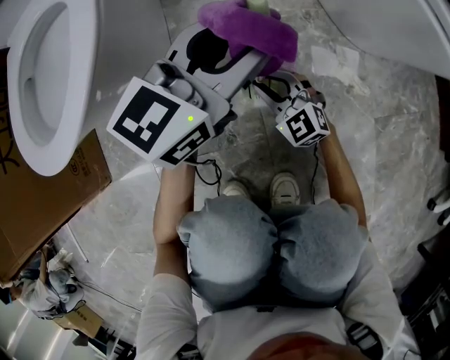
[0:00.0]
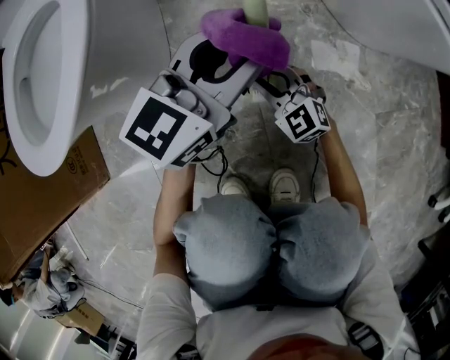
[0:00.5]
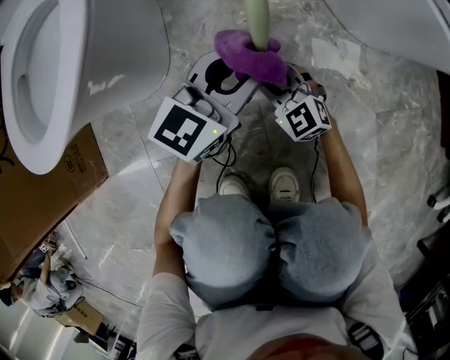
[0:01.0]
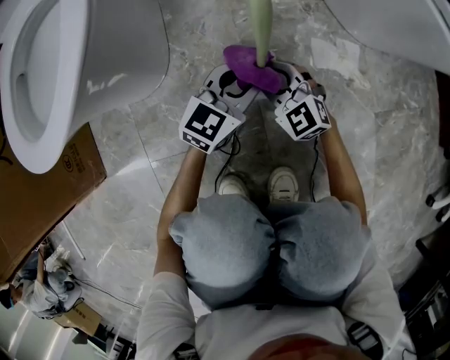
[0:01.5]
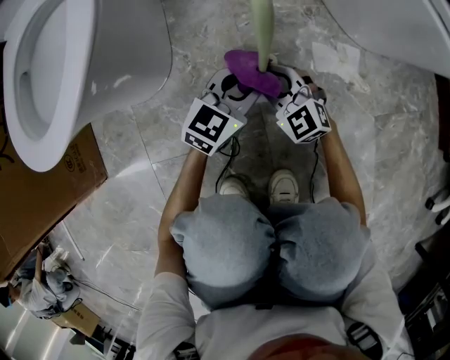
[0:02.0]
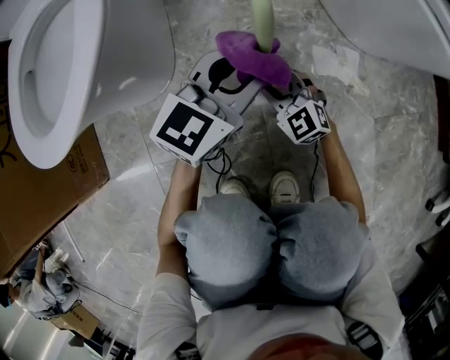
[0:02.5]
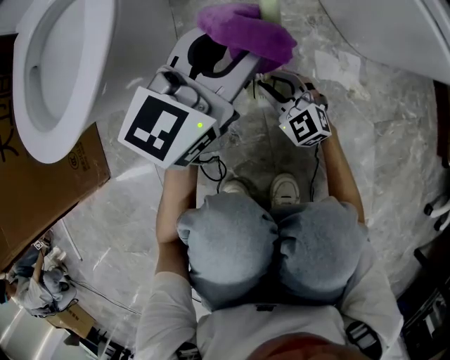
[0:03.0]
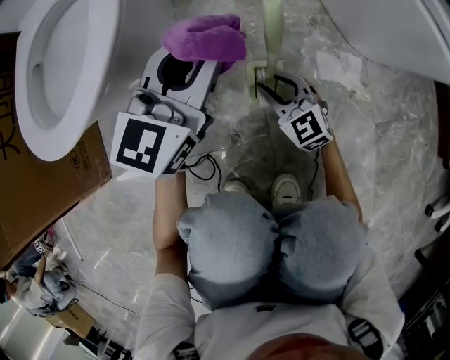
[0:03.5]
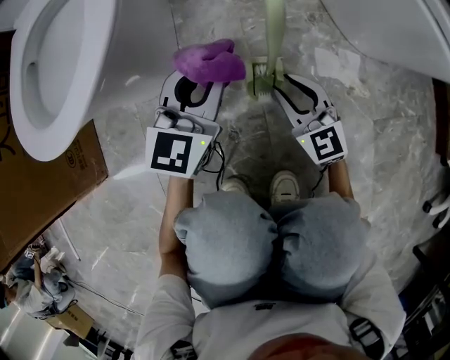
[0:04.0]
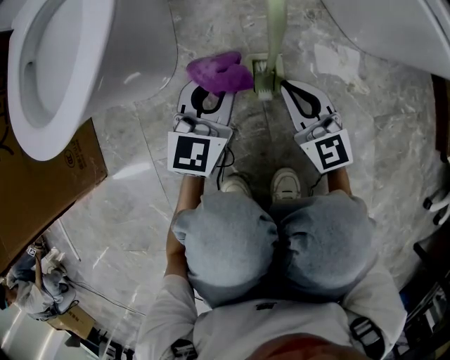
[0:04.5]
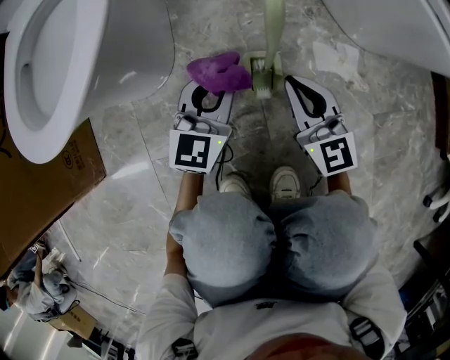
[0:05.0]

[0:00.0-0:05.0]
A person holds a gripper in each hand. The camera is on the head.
0:00.0 to 0:02.5: The left gripper goes about 10 cm downward.
0:02.5 to 0:05.0: The right gripper travels upward by approximately 10 cm, and changes its angle by roughly 30 degrees; the left gripper goes approximately 10 cm to the left and downward, and turns by about 20 degrees.

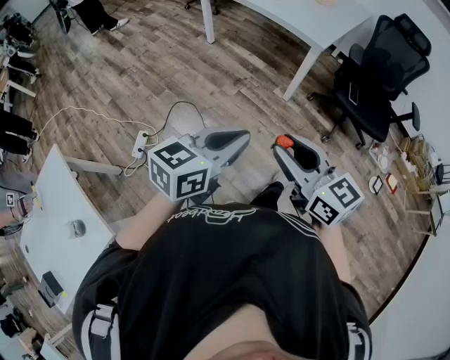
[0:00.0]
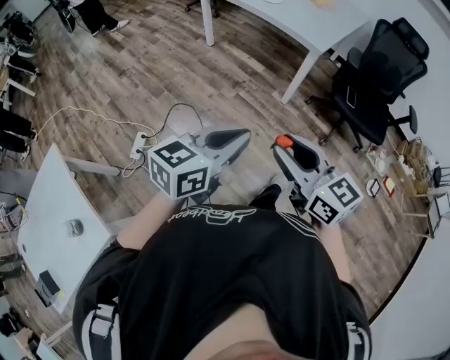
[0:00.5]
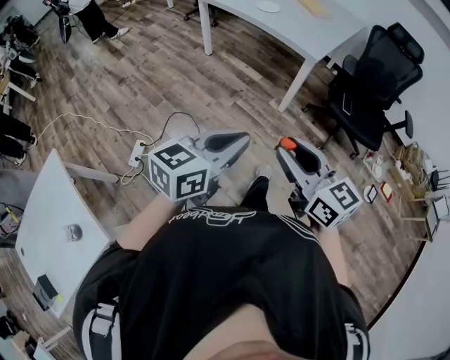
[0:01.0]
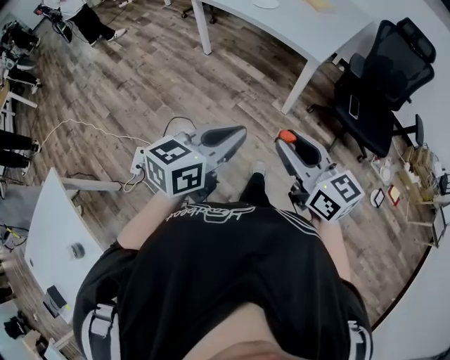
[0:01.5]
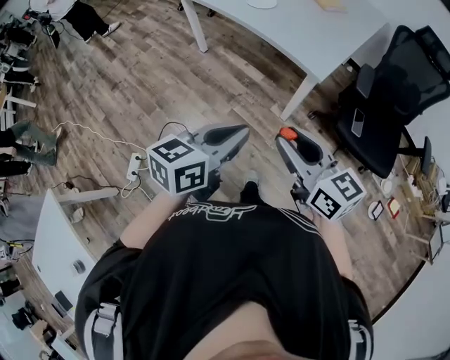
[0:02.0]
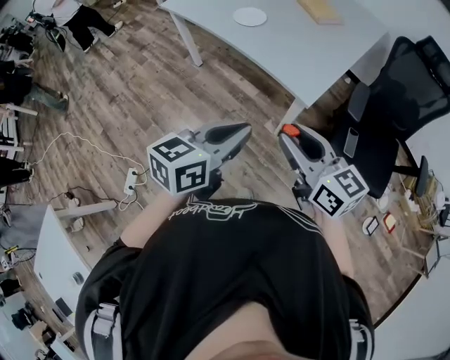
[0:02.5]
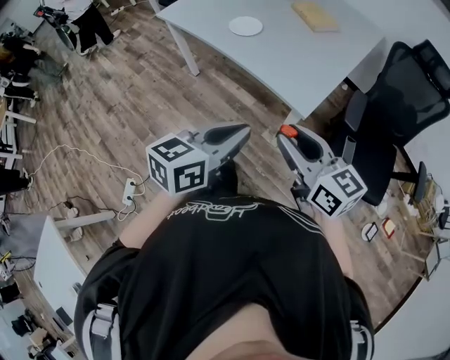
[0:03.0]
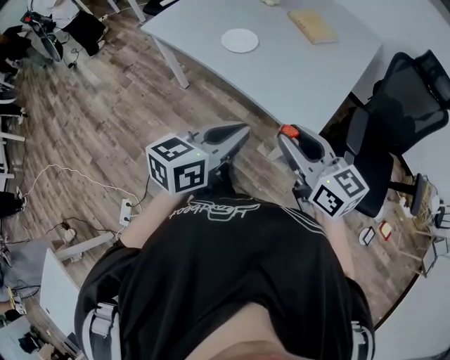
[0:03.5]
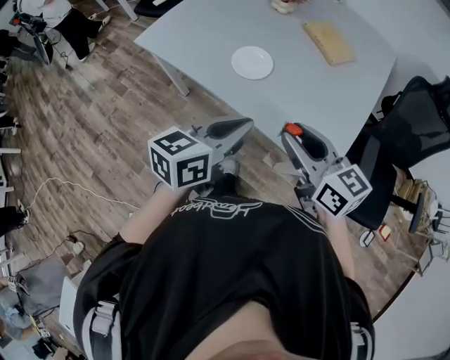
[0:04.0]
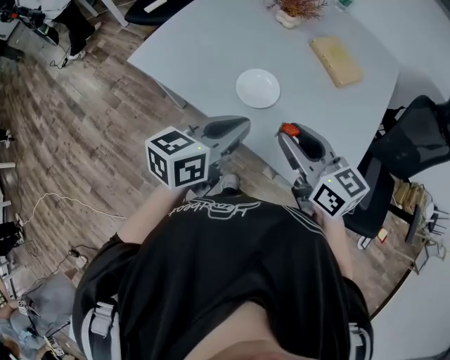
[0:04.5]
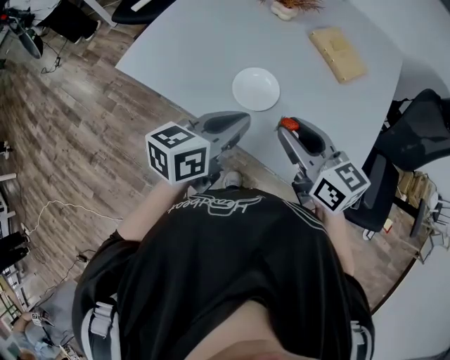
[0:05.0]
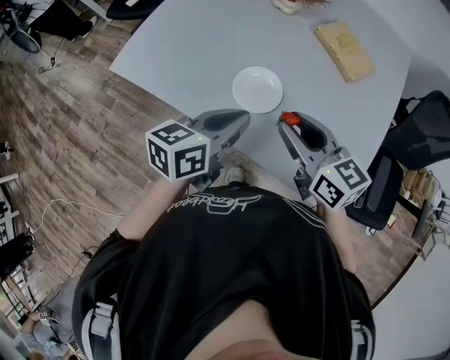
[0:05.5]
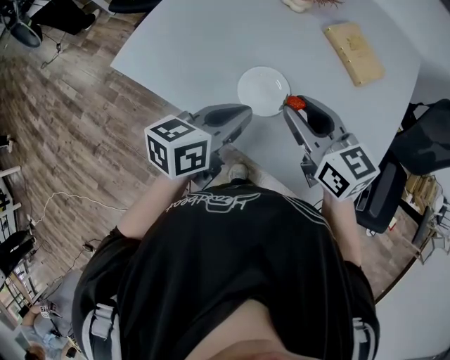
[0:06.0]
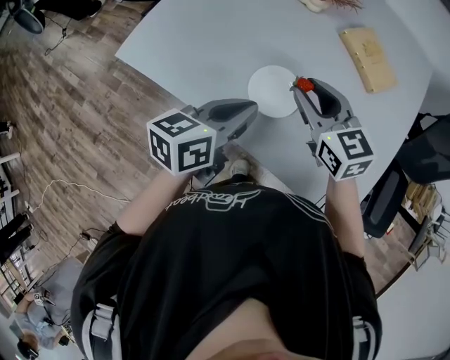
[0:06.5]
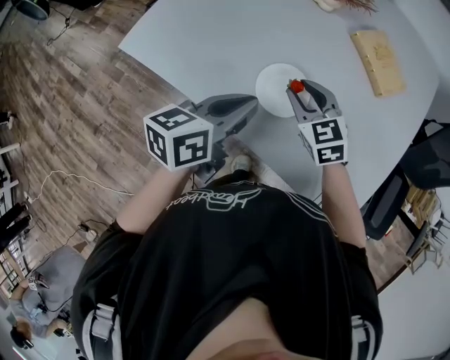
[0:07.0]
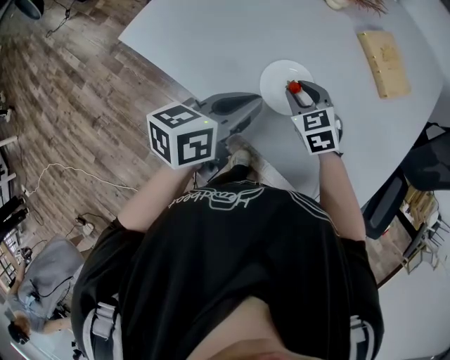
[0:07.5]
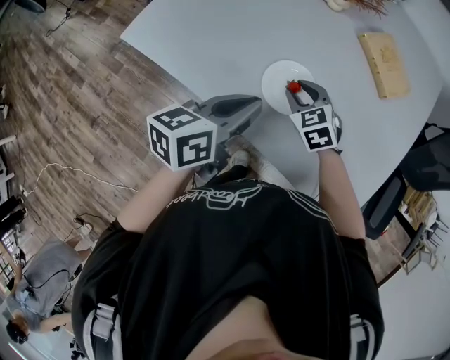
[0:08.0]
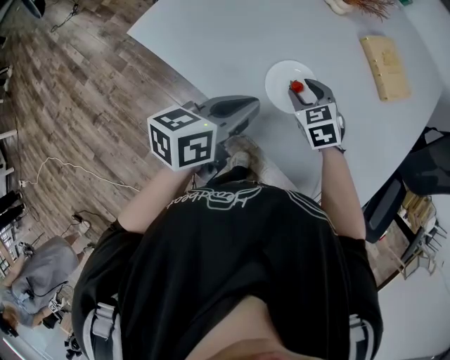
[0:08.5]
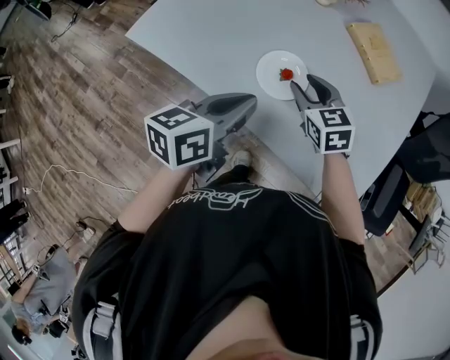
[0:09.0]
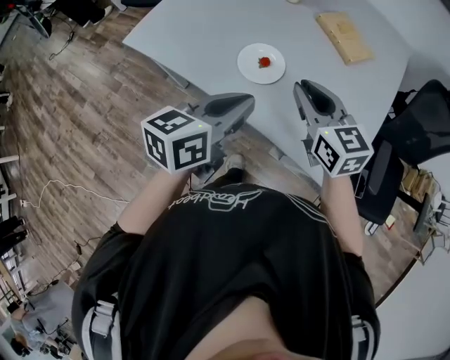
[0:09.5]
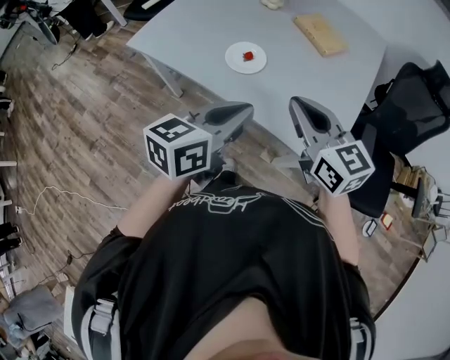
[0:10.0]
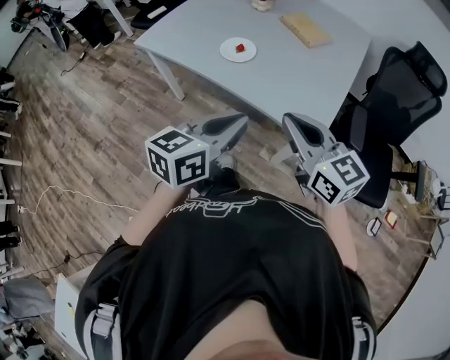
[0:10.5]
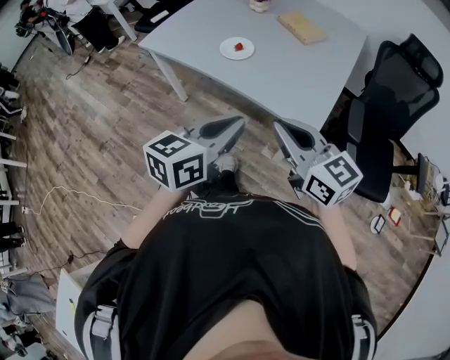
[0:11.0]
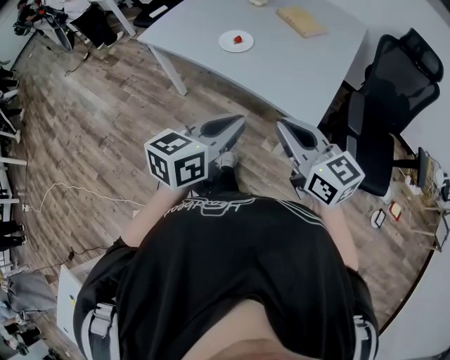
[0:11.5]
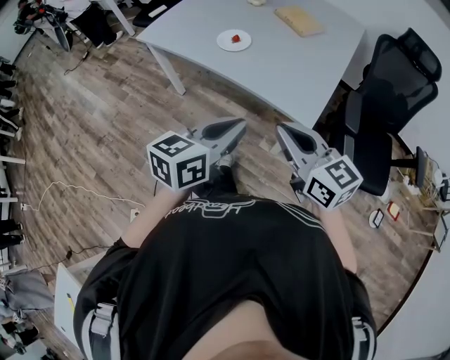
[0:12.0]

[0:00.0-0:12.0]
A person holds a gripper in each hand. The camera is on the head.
0:00.0 to 0:02.0: The grippers both shift forward by some 30 cm.
0:02.0 to 0:04.0: The pair of grippers is taken forward, approximately 50 cm.
0:04.0 to 0:06.0: The grippers both shift forward by about 25 cm.
0:06.0 to 0:08.0: The right gripper is displaced downward by roughly 20 cm, and swivels about 40 degrees.
0:08.0 to 0:10.0: The left gripper heads backward, to the right and upward, covering roughly 30 cm. The right gripper heads backward, upward and to the right, covering approximately 40 cm, points its fingers some 40 degrees further upward, and closes up.
0:10.0 to 0:12.0: The two grippers go about 20 cm backward.

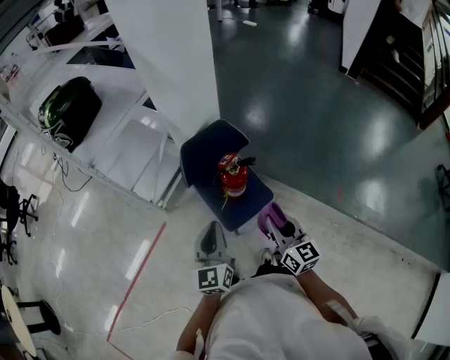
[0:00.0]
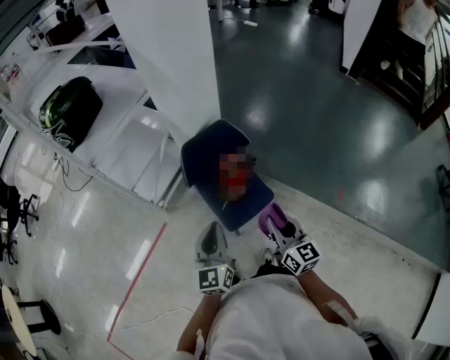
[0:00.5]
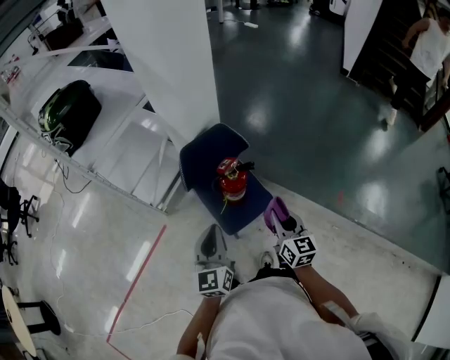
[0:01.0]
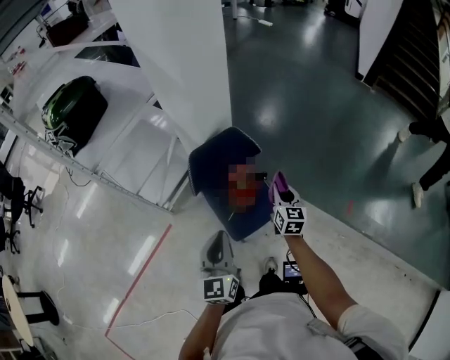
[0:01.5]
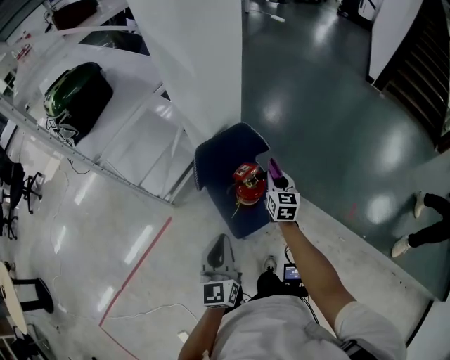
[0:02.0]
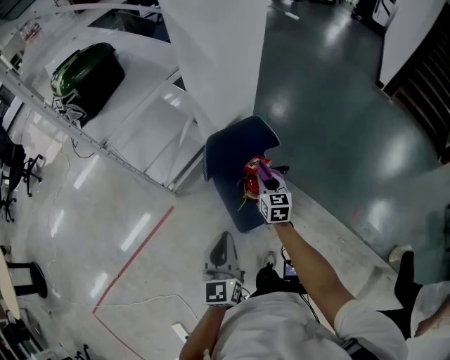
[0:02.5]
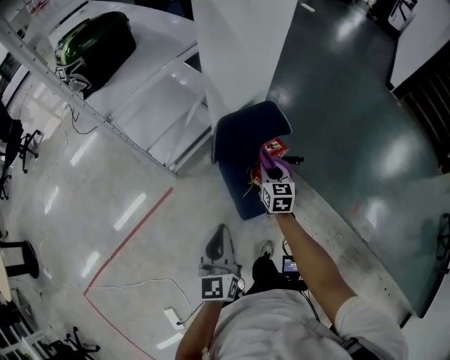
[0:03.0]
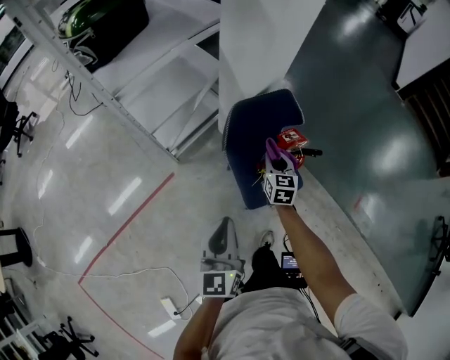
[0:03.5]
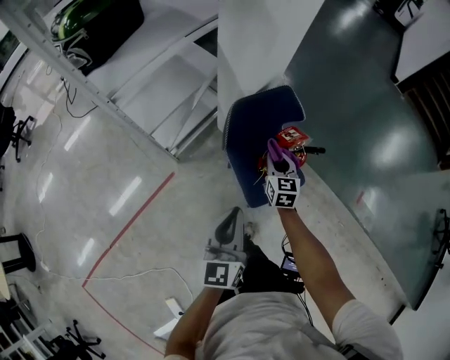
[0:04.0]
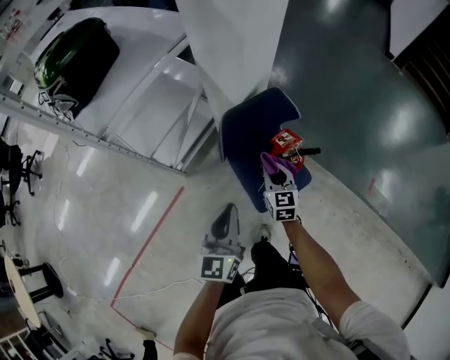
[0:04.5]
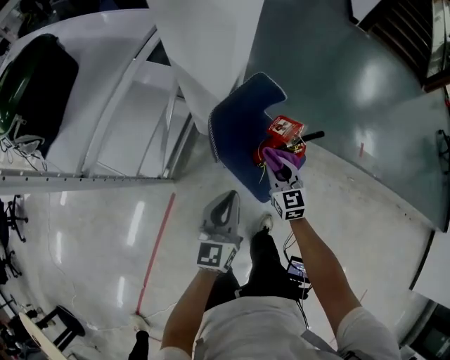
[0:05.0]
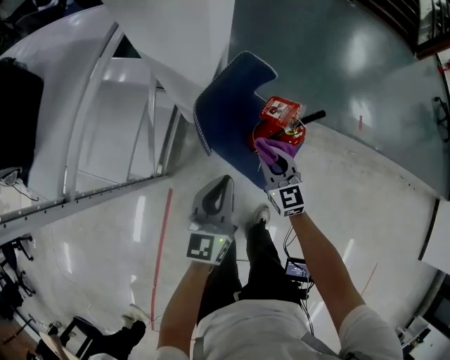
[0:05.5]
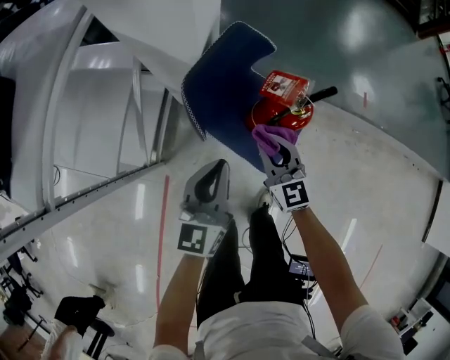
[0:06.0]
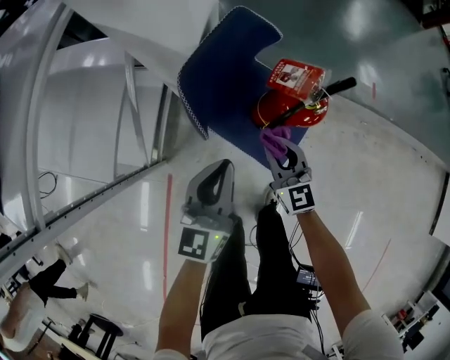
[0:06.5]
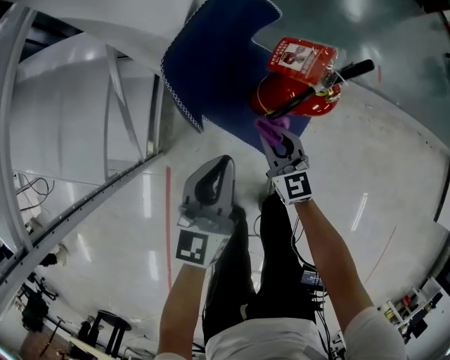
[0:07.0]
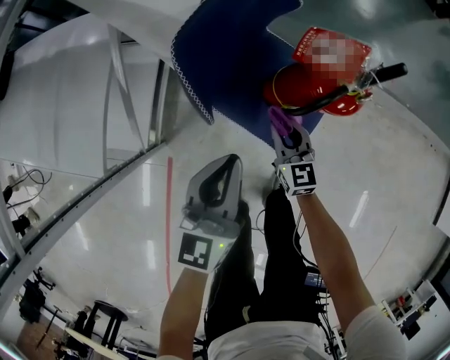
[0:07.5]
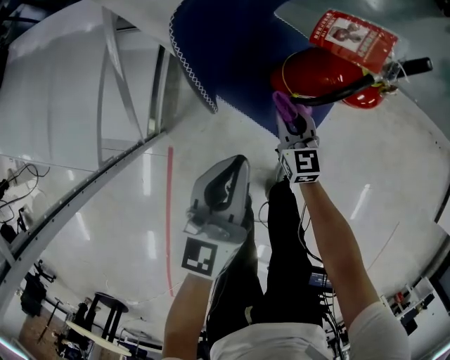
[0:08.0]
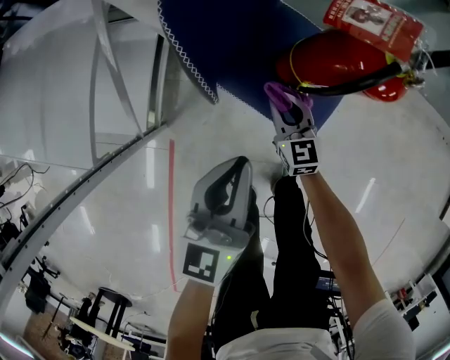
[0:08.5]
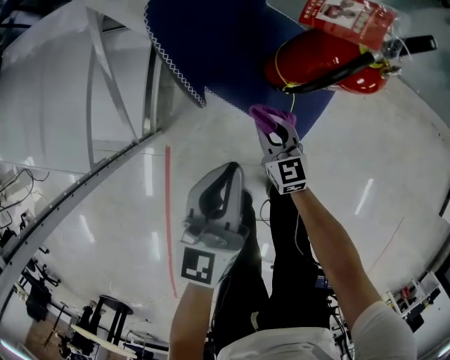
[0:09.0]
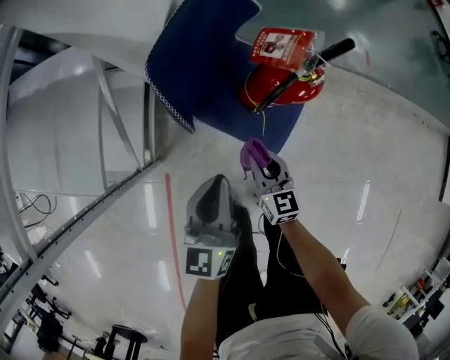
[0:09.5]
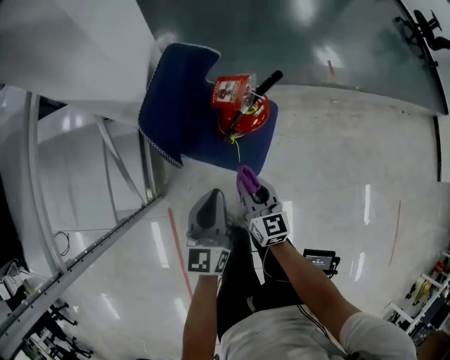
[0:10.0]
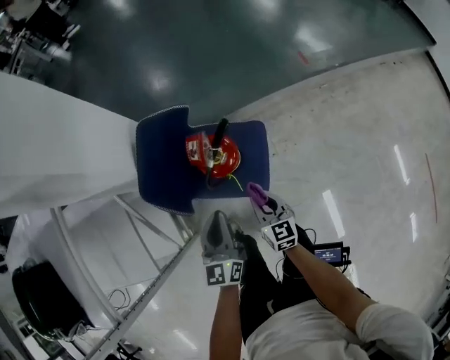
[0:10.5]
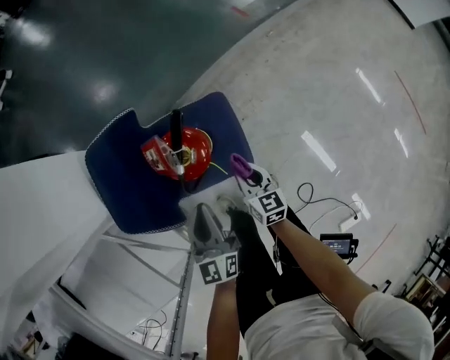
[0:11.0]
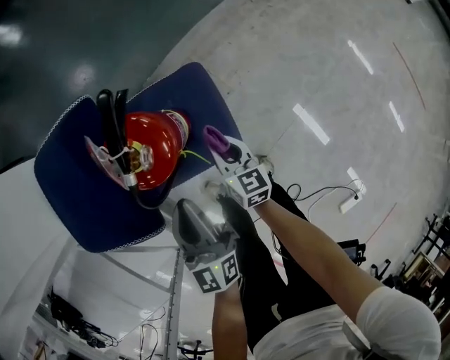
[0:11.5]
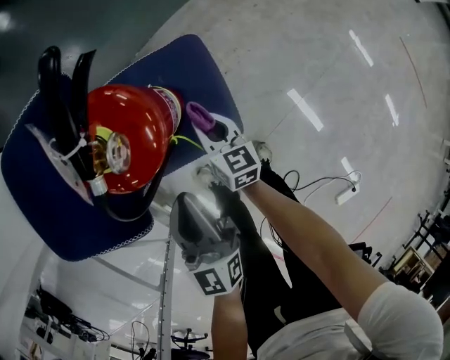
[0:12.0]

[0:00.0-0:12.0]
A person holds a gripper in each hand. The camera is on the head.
0:00.0 to 0:02.0: The right gripper travels forward by approximately 25 cm, and changes its angle by roughly 20 degrees.
0:02.0 to 0:04.0: The left gripper shifts approximately 10 cm to the left; the right gripper travels to the left and downward by about 20 cm.
0:04.0 to 0:06.0: The left gripper heads forward and downward, covering about 20 cm, and swivels about 40 degrees.
0:06.0 to 0:08.0: The right gripper travels downward by approximately 20 cm; the left gripper heads downward, covering about 10 cm.
0:08.0 to 0:10.0: The left gripper shifts roughly 5 cm upward; the right gripper is displaced upward and backward by roughly 20 cm, and turns by some 20 degrees.
0:10.0 to 0:12.0: The left gripper heads downward and forward, covering about 15 cm; the right gripper moves downward and forward, about 25 cm, and swivels some 30 degrees.
